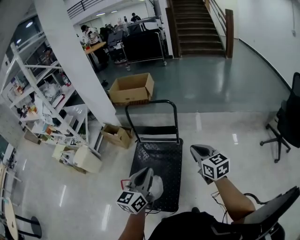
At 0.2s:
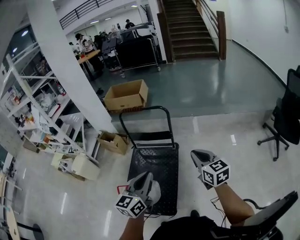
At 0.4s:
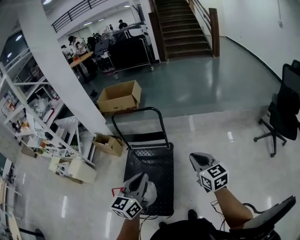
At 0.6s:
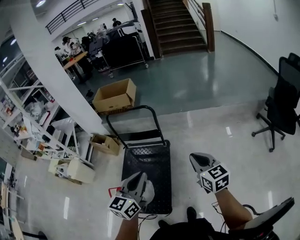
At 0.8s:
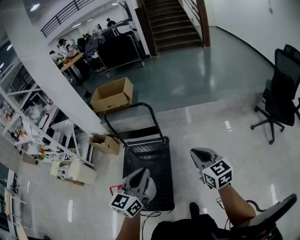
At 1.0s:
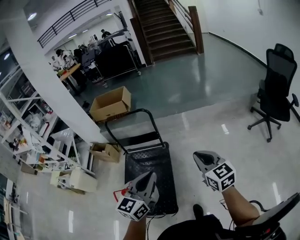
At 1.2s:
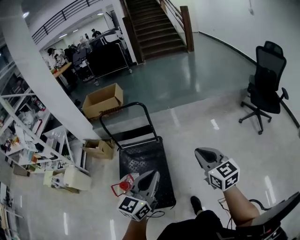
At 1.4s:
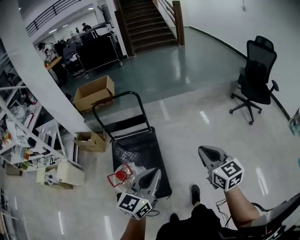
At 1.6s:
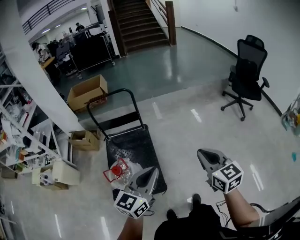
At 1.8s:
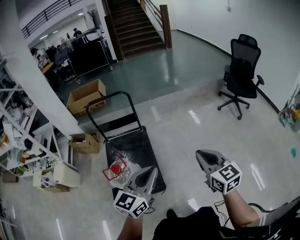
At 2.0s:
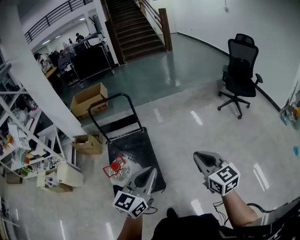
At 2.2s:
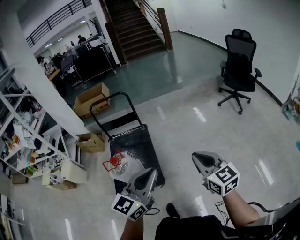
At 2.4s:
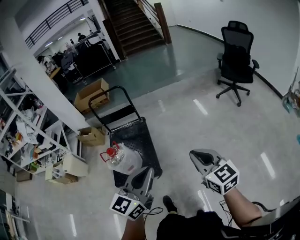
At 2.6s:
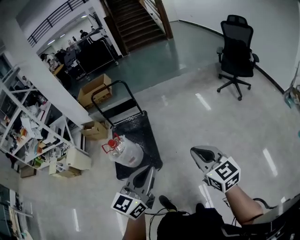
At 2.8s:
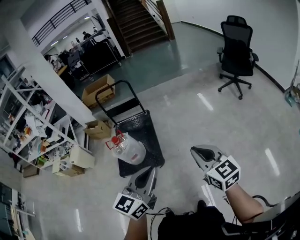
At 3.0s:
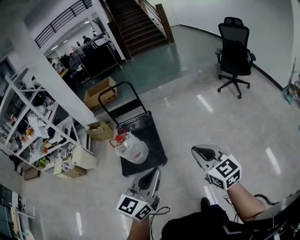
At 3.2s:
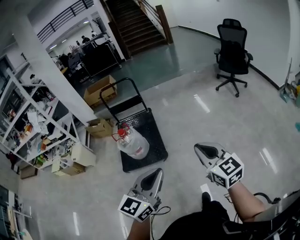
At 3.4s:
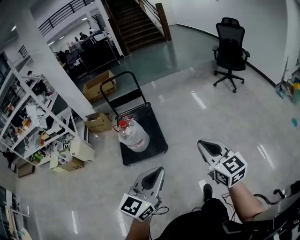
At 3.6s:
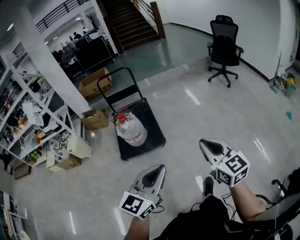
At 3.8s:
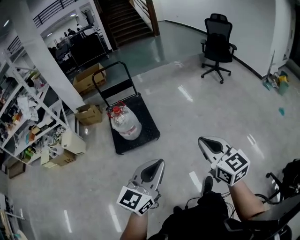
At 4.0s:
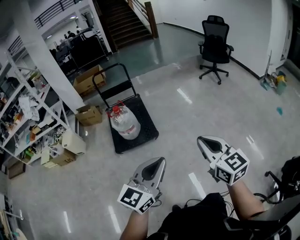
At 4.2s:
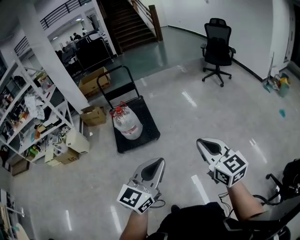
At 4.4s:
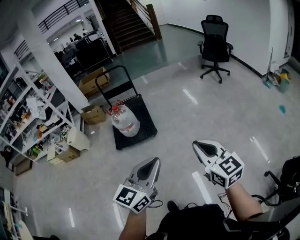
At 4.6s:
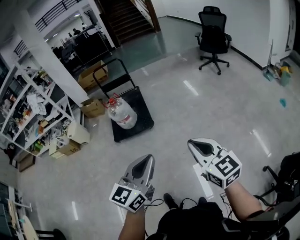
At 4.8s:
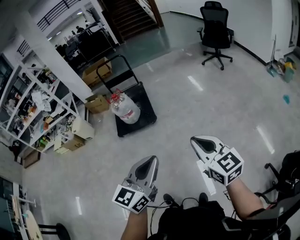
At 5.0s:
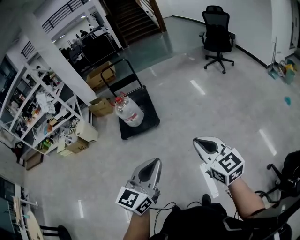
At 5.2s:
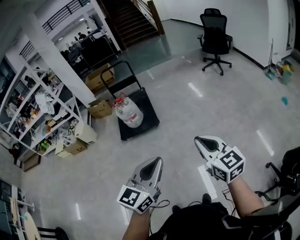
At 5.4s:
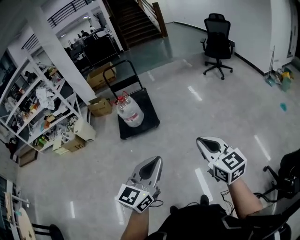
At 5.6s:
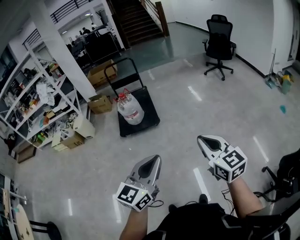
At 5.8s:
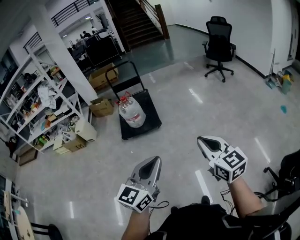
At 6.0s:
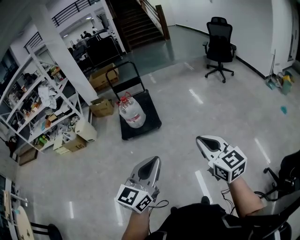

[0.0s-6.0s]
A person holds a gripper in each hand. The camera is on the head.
0.0s to 1.6s: The right gripper shifts by some 35 cm, and swivels about 20 degrees, while the left gripper changes place by roughly 25 cm, and turns by about 30 degrees.
1.6s to 3.0s: The two grippers travel together, backward, approximately 40 cm.
3.0s to 4.4s: Both grippers travel together backward, some 40 cm.
4.4s to 6.0s: The two grippers go roughly 15 cm backward.

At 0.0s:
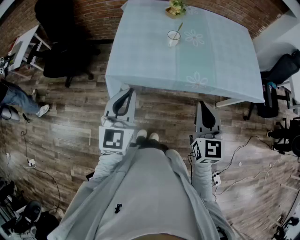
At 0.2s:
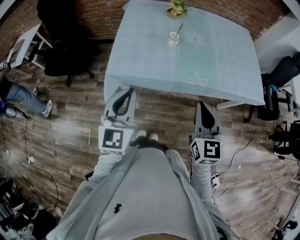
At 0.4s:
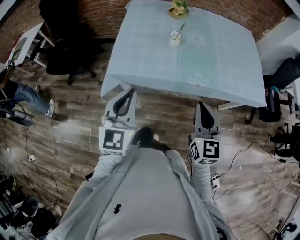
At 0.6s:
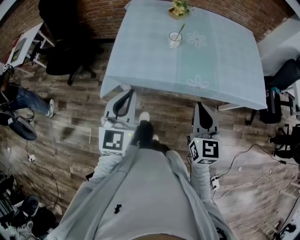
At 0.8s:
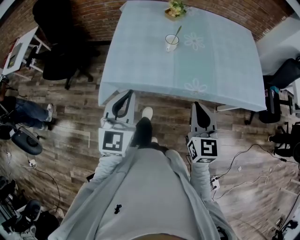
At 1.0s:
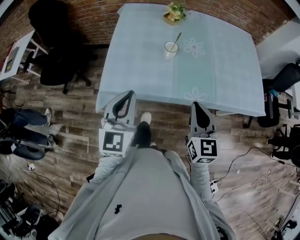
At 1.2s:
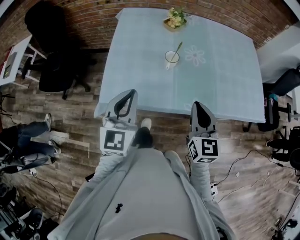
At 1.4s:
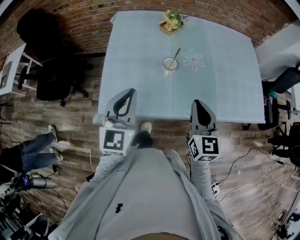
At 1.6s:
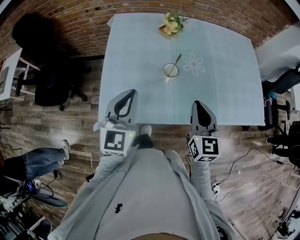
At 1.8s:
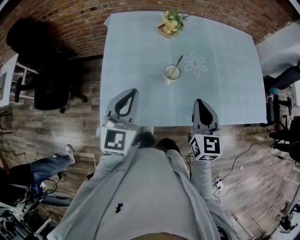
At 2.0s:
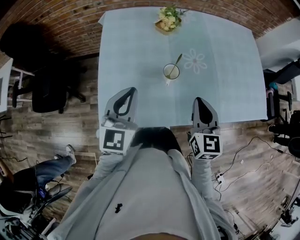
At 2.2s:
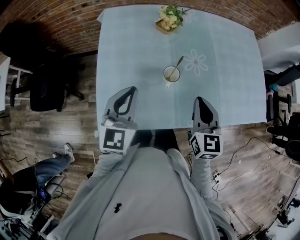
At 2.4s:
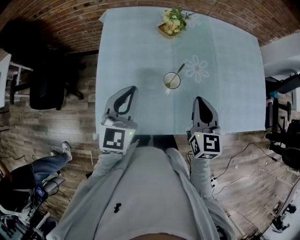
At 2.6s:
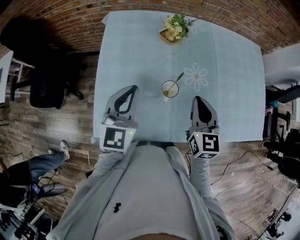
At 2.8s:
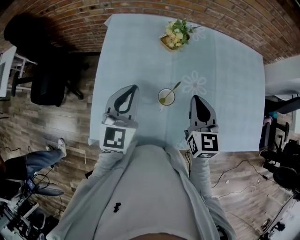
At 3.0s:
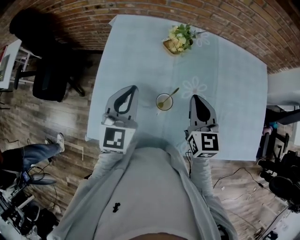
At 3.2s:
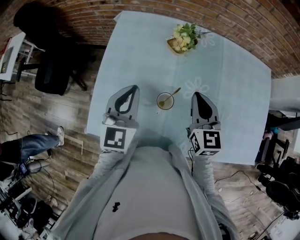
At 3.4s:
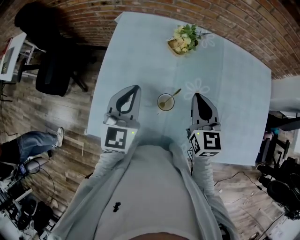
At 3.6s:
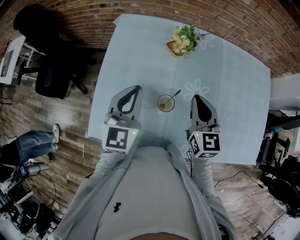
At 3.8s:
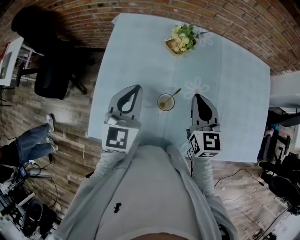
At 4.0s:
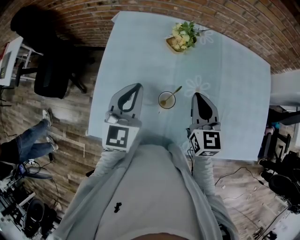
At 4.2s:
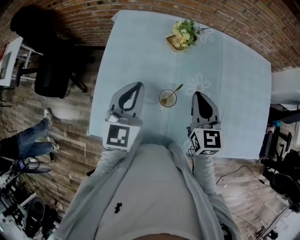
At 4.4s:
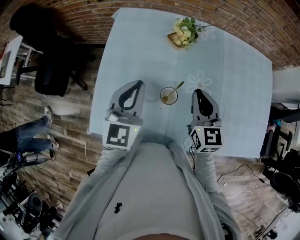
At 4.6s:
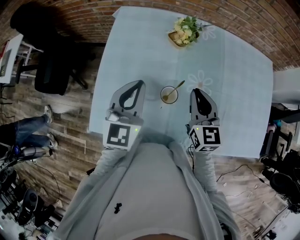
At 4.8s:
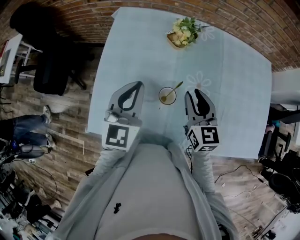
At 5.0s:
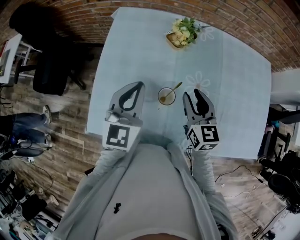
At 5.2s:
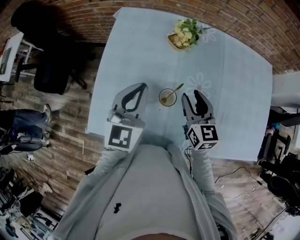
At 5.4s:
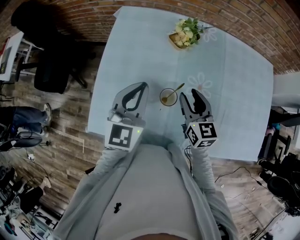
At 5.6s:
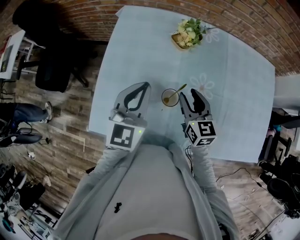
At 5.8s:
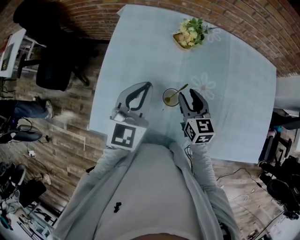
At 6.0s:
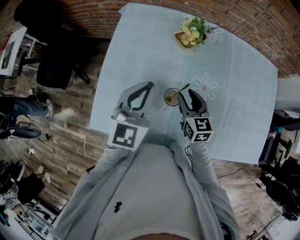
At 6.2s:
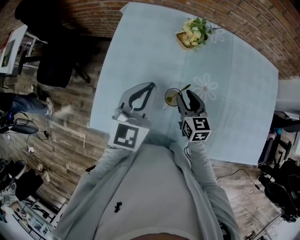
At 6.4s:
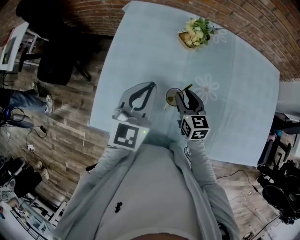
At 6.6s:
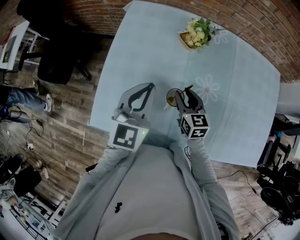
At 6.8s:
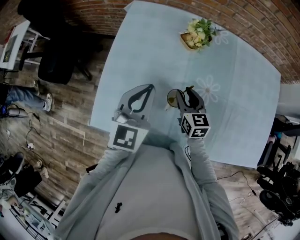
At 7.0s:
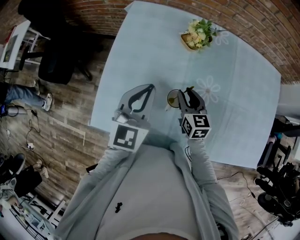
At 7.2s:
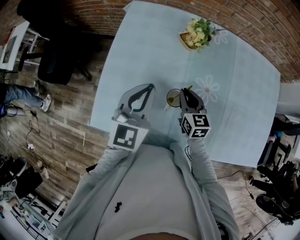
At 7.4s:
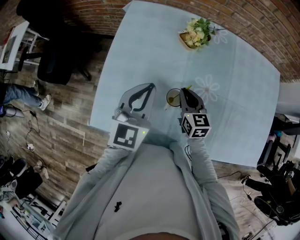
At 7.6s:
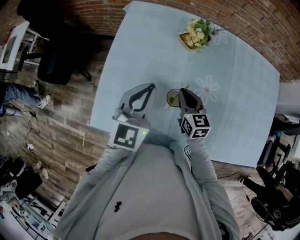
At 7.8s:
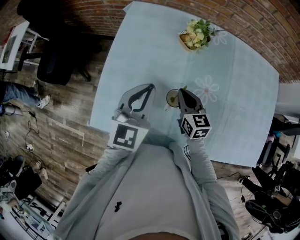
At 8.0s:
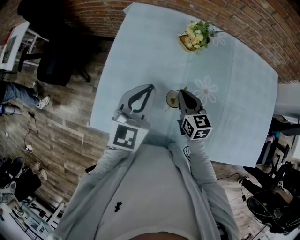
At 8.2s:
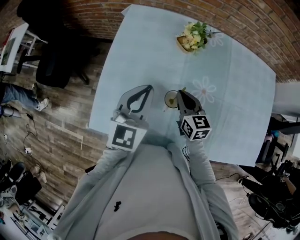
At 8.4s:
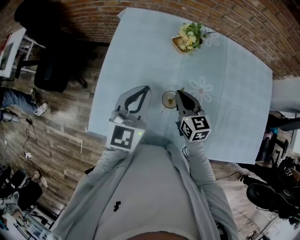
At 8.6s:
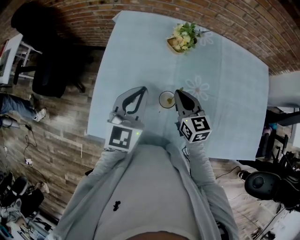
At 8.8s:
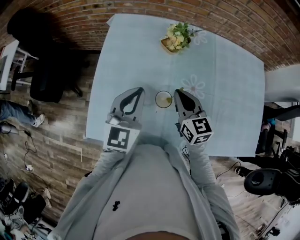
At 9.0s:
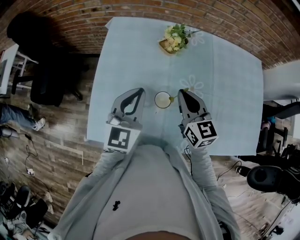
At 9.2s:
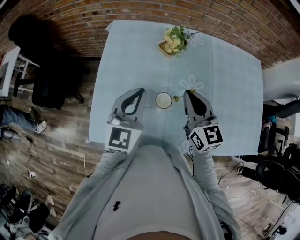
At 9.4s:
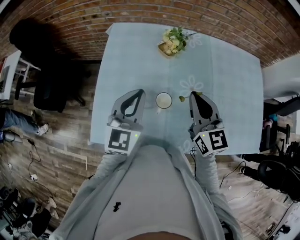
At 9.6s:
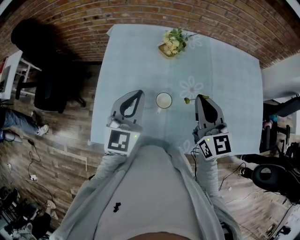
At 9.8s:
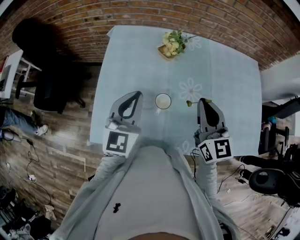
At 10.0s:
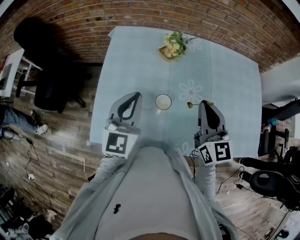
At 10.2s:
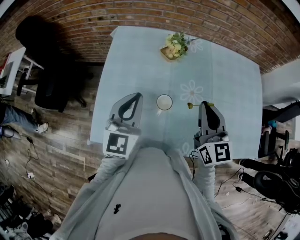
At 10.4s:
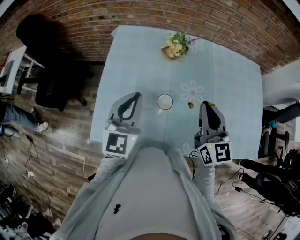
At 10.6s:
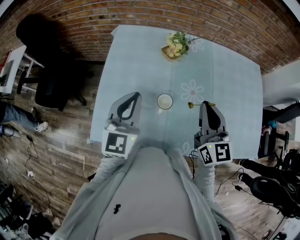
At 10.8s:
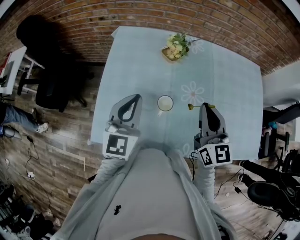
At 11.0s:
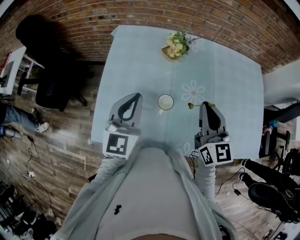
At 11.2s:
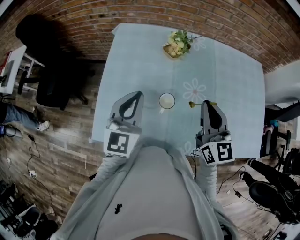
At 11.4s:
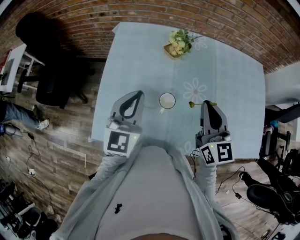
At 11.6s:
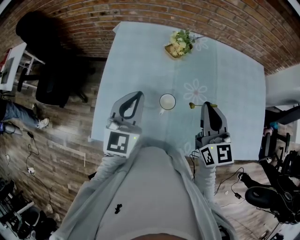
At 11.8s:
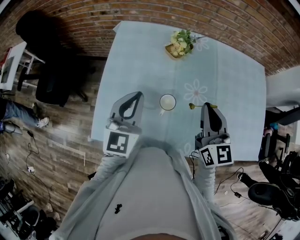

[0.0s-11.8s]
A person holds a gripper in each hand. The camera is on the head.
0.0s to 1.4s: The grippers both shift forward by about 20 cm.
1.4s to 3.0s: The grippers both shift forward by about 25 cm.
3.0s to 4.4s: The grippers stay close to where they were, moving slightly.
4.4s to 6.0s: The right gripper moves downward, about 10 cm, and opens up.
6.0s to 7.4s: The right gripper closes its fingers.
7.4s to 8.8s: The right gripper moves upward, roughly 10 cm.
8.8s to 10.4s: The right gripper moves upward, to the right and backward, roughly 15 cm, and rotates about 20 degrees.
10.4s to 11.8s: The grippers stay close to where they were, moving slightly.

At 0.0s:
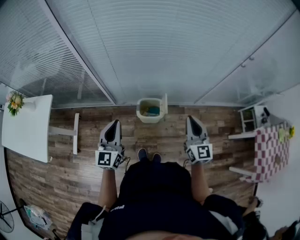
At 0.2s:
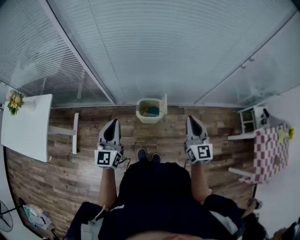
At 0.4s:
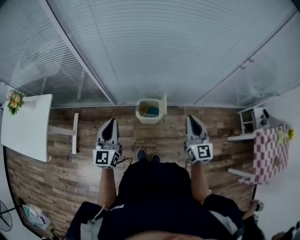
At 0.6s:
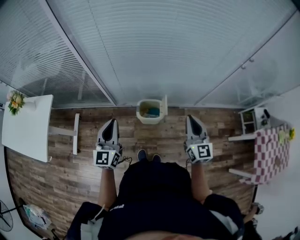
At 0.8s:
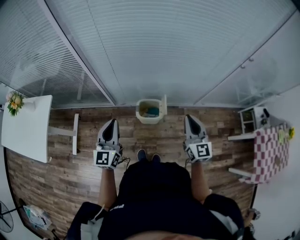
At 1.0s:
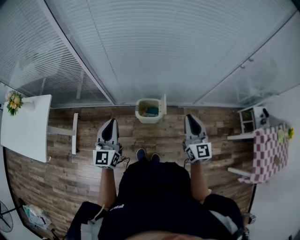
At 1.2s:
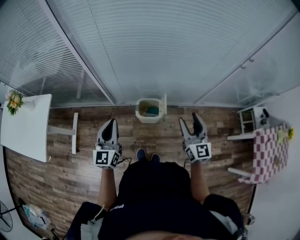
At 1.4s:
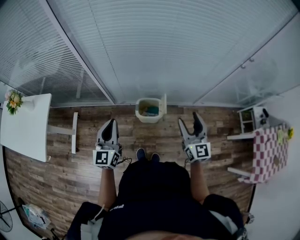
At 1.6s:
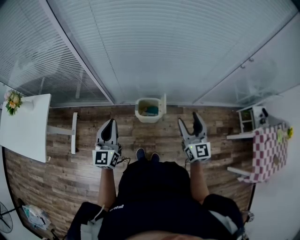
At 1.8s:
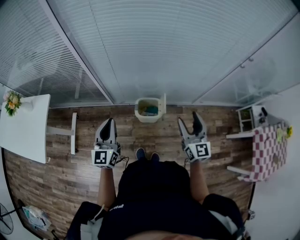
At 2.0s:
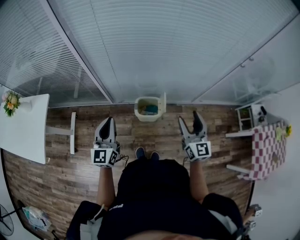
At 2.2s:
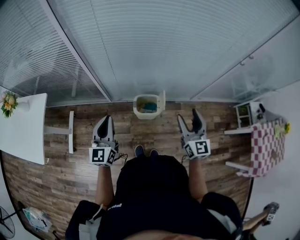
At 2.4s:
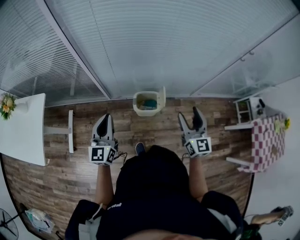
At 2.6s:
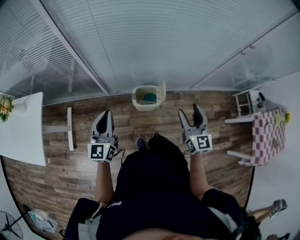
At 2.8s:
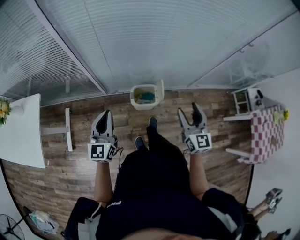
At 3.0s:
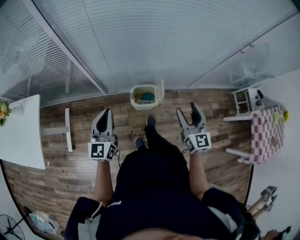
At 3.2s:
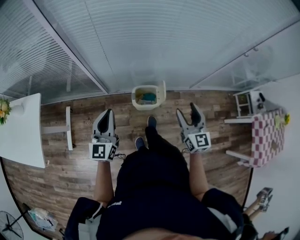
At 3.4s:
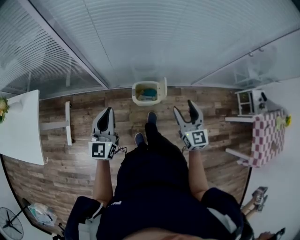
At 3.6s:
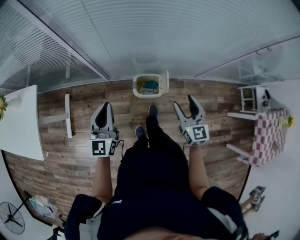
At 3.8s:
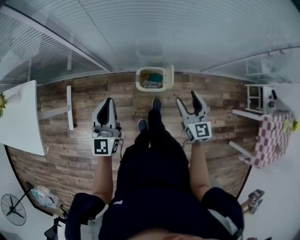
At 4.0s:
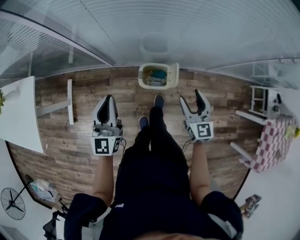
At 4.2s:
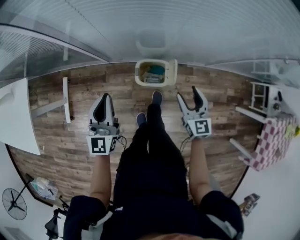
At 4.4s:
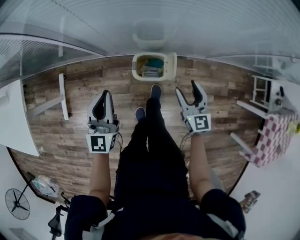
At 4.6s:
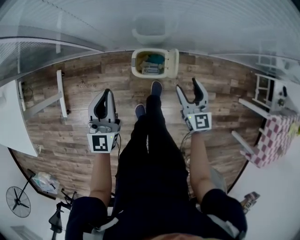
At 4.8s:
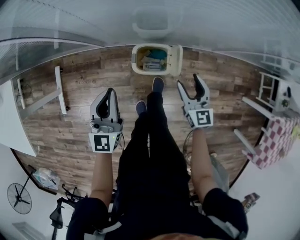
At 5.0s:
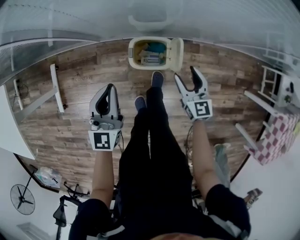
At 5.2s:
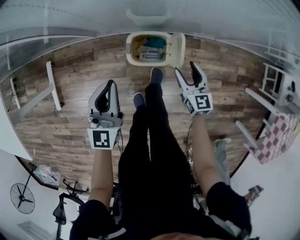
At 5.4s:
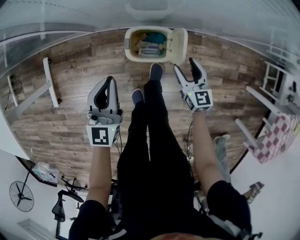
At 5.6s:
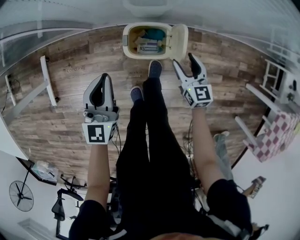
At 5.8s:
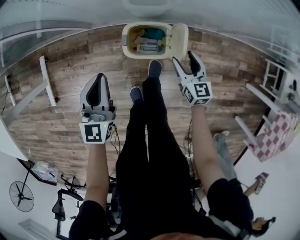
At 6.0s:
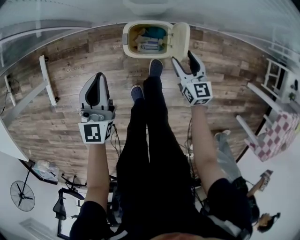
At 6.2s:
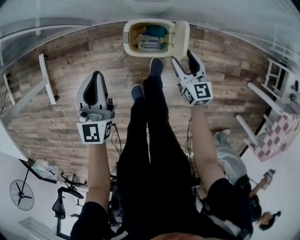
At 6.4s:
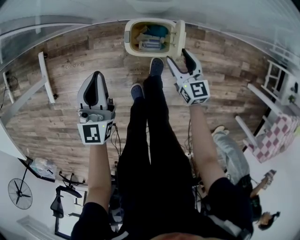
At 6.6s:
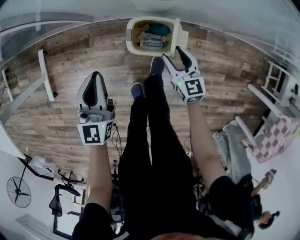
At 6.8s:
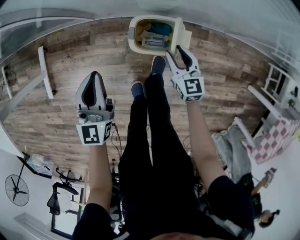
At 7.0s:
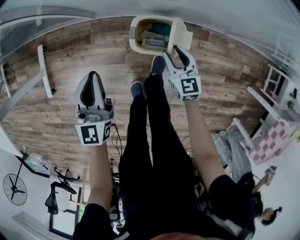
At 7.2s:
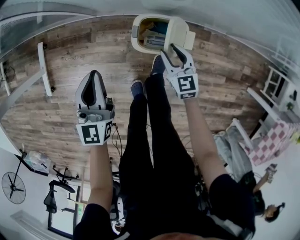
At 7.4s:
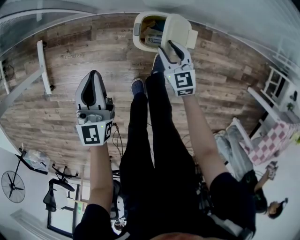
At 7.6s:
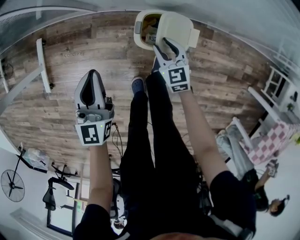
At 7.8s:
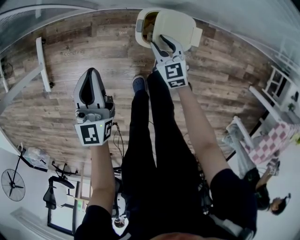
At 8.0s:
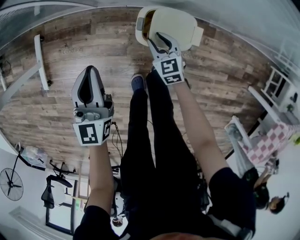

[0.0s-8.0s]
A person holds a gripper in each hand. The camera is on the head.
0.0s to 1.6s: The right gripper opens.
1.6s to 3.2s: The right gripper changes place by about 5 cm.
3.2s to 4.8s: The left gripper goes approximately 20 cm downward, forward and to the right. The right gripper travels downward and forward by roughly 25 cm.
4.8s to 6.4s: Both grippers move downward, some 15 cm.
6.4s to 8.0s: The left gripper is displaced to the left by approximately 5 cm, while the right gripper is displaced to the left and downward by some 20 cm, changes its angle by some 20 degrees, and closes its fingers.
